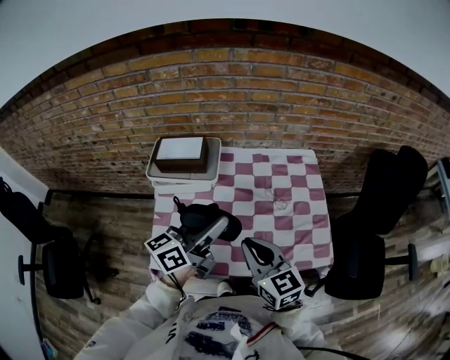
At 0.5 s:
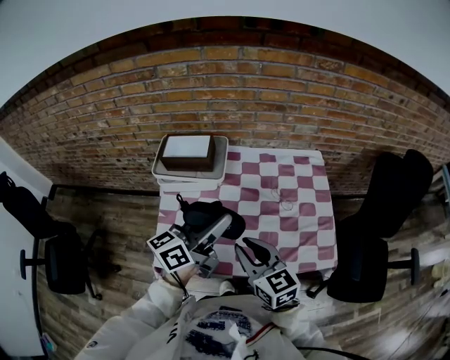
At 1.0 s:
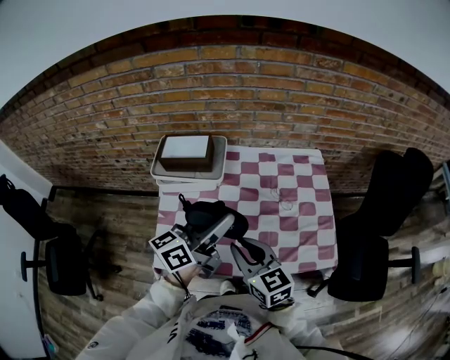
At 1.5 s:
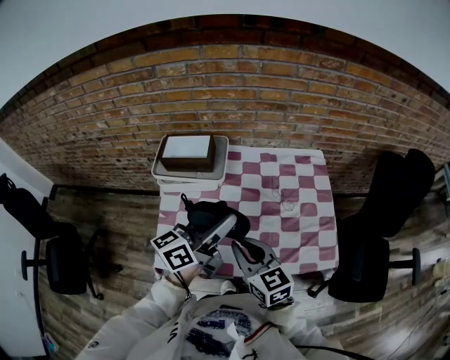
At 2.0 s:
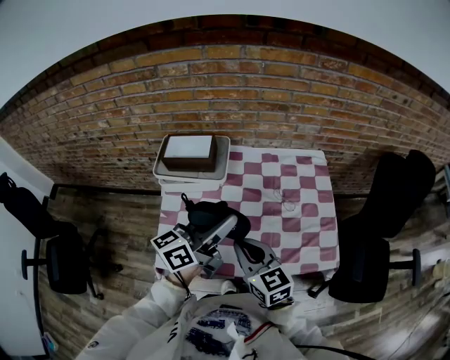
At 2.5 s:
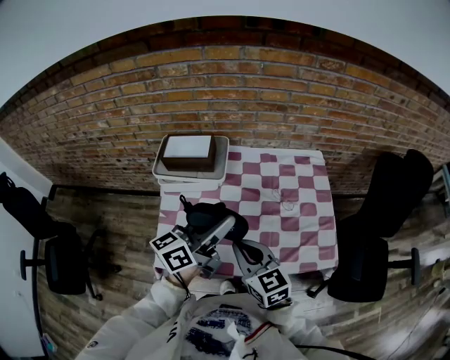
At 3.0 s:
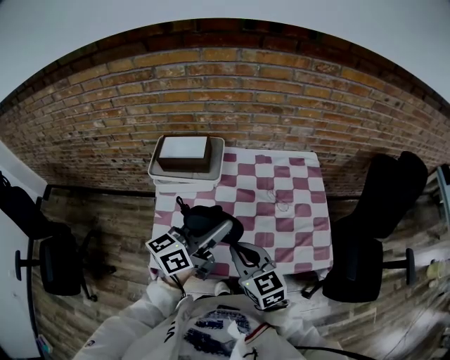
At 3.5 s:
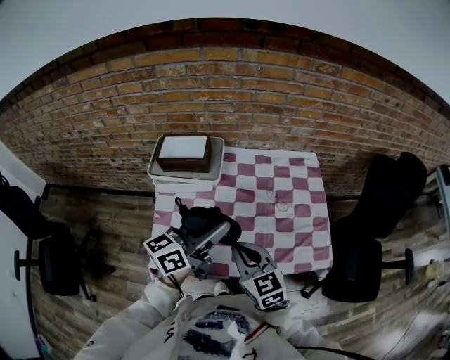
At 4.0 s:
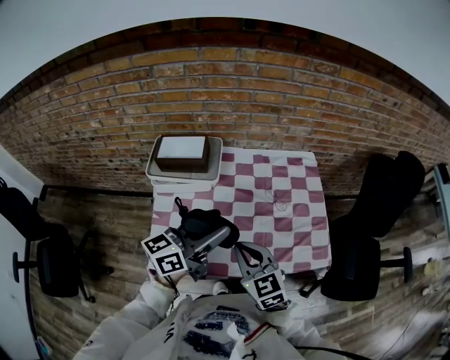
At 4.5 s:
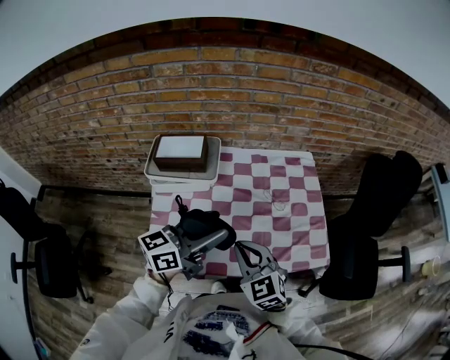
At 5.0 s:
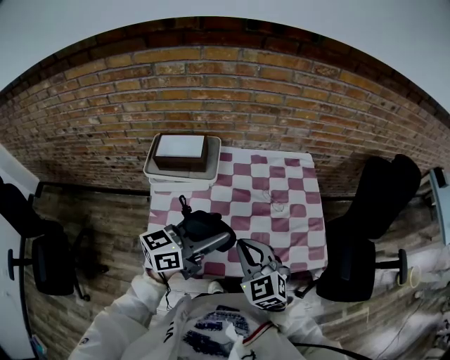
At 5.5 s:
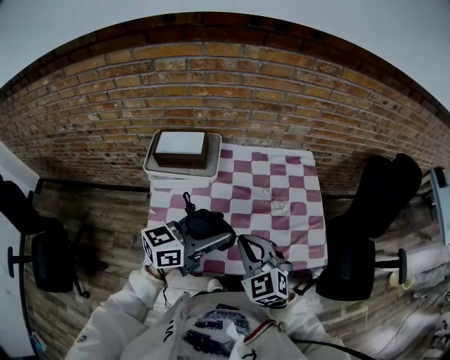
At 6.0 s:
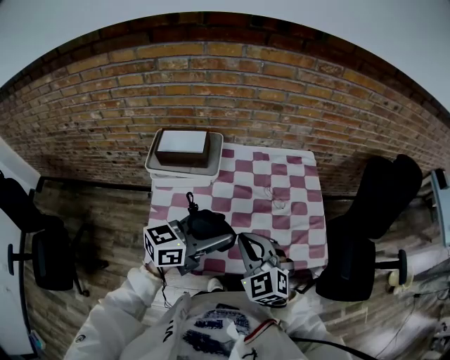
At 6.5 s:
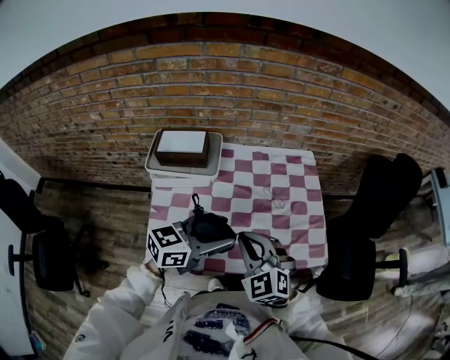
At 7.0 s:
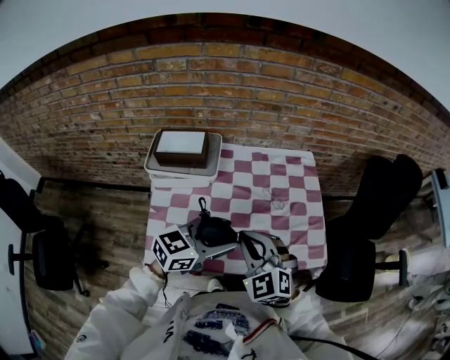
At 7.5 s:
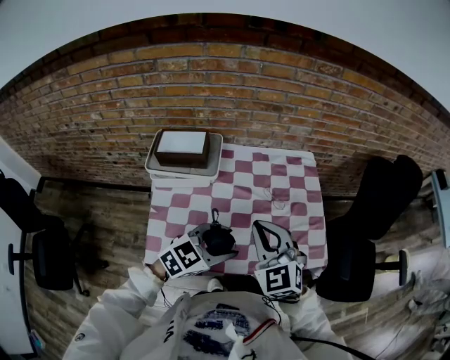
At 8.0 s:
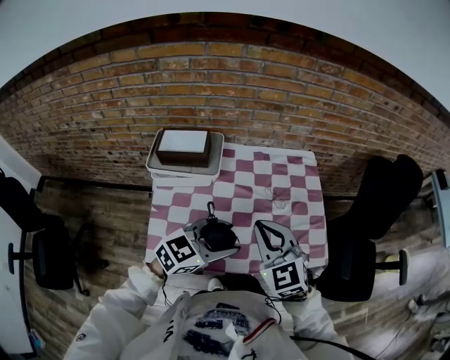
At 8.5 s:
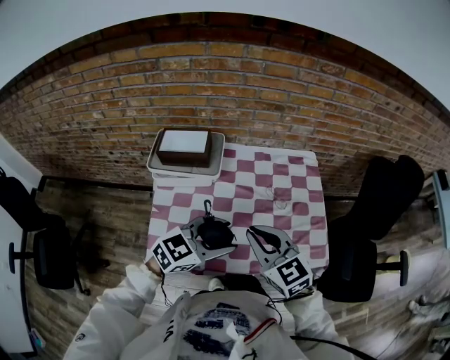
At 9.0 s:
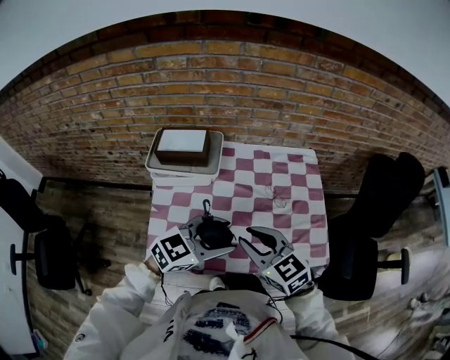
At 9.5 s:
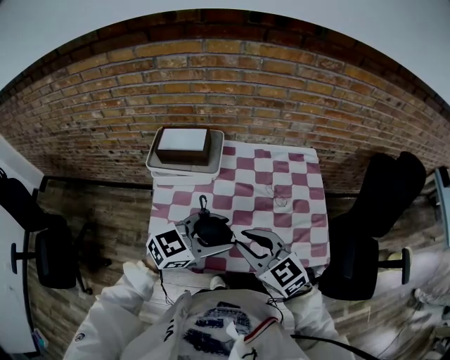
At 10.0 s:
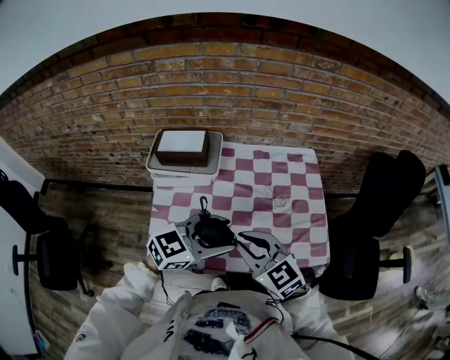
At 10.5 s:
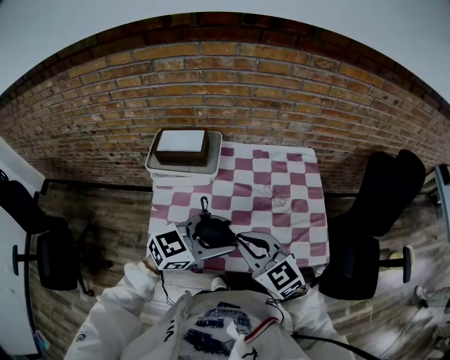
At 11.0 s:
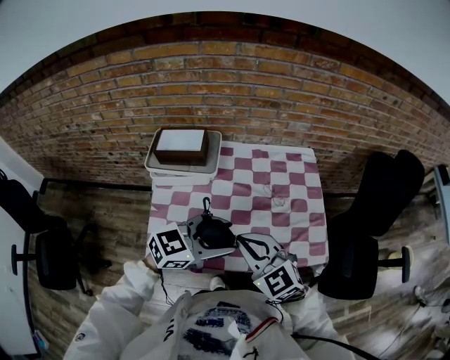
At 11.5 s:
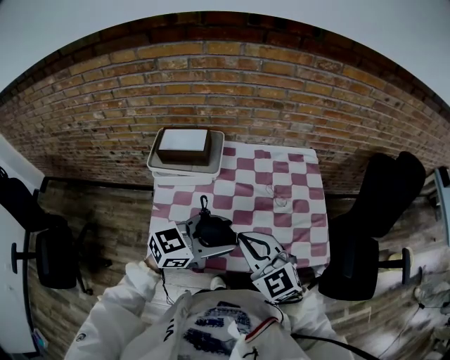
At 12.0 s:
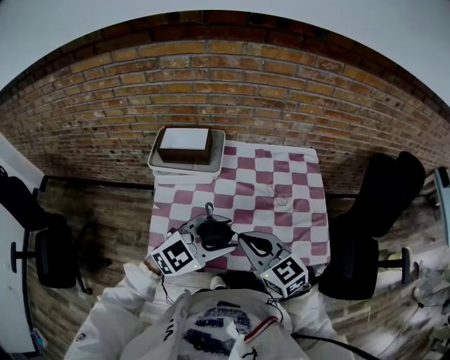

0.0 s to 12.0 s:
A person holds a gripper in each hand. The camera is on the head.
0.0 to 2.0 s: The right gripper moves some 5 cm.
2.0 to 4.0 s: The grippers move only a little.
4.0 to 6.0 s: The right gripper turns by about 30 degrees.
6.0 to 8.0 s: The left gripper ends up some 5 cm from where it was, and rotates roughly 30 degrees. Meanwhile the right gripper goes some 5 cm upward.
8.0 to 10.0 s: The right gripper shifts by about 5 cm, and turns by some 20 degrees.
10.0 to 12.0 s: The grippers move only a little.

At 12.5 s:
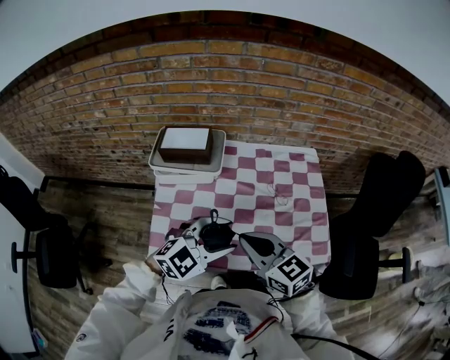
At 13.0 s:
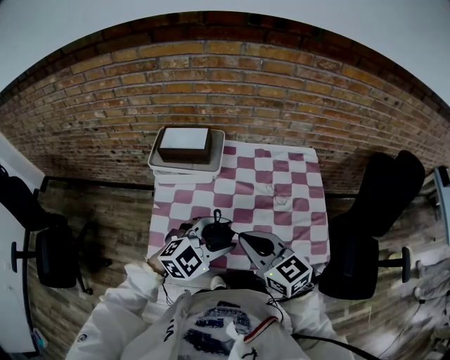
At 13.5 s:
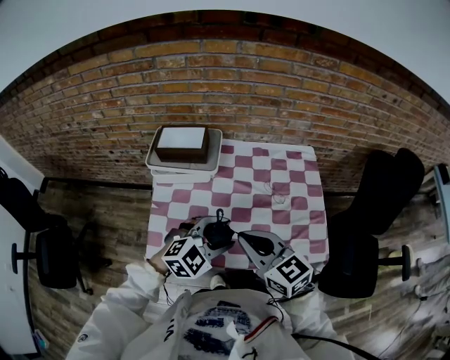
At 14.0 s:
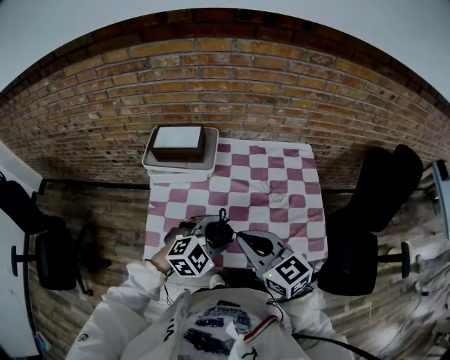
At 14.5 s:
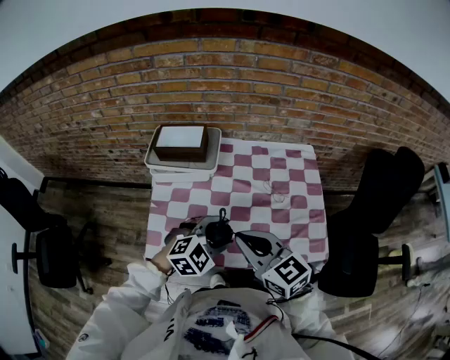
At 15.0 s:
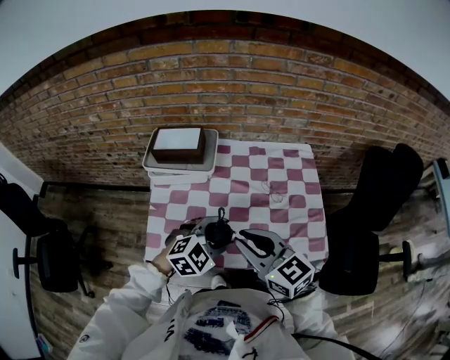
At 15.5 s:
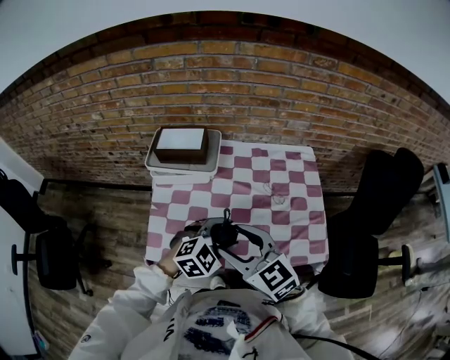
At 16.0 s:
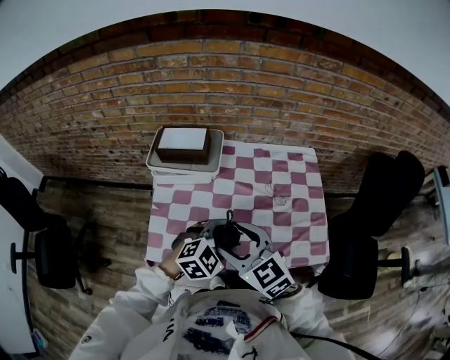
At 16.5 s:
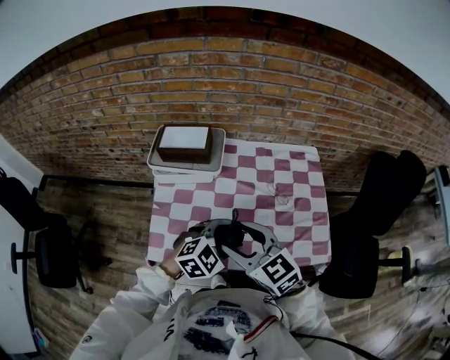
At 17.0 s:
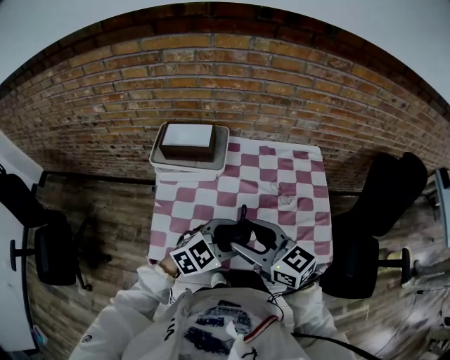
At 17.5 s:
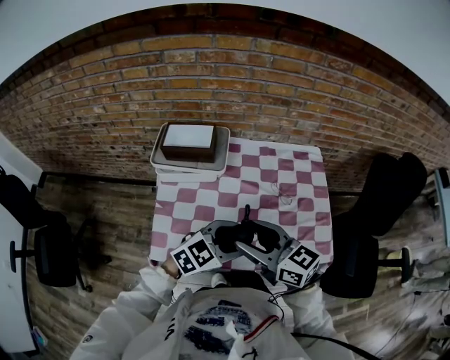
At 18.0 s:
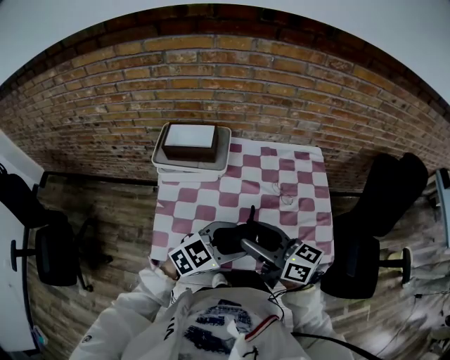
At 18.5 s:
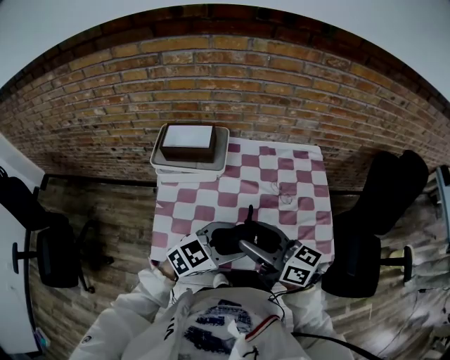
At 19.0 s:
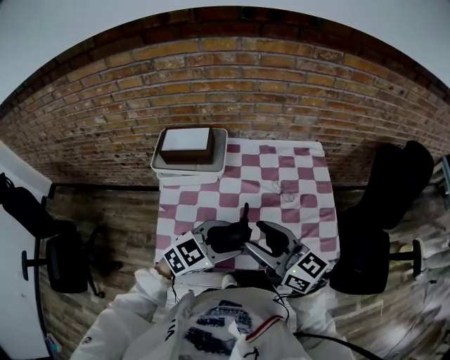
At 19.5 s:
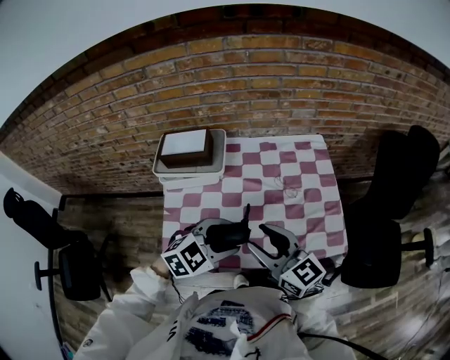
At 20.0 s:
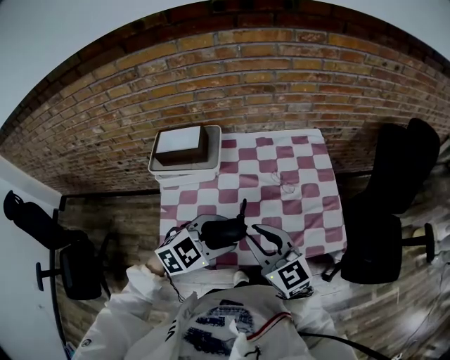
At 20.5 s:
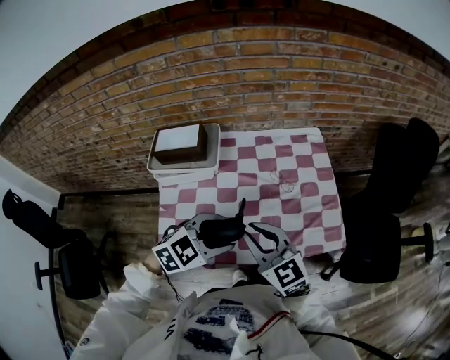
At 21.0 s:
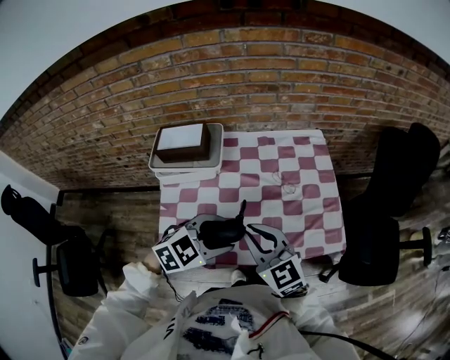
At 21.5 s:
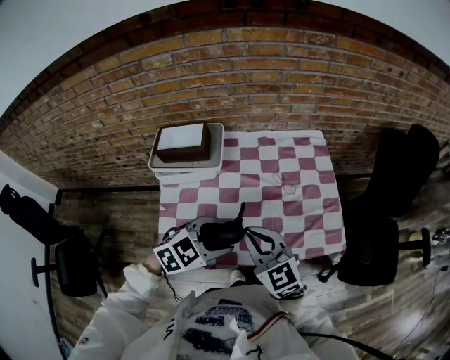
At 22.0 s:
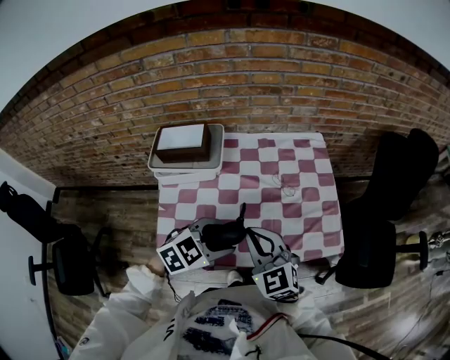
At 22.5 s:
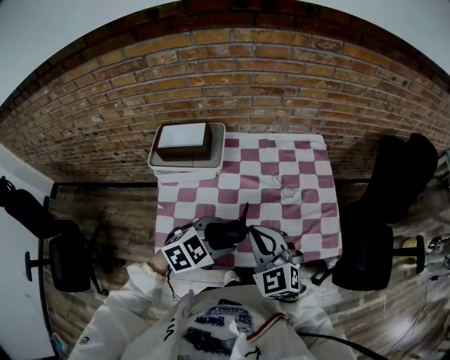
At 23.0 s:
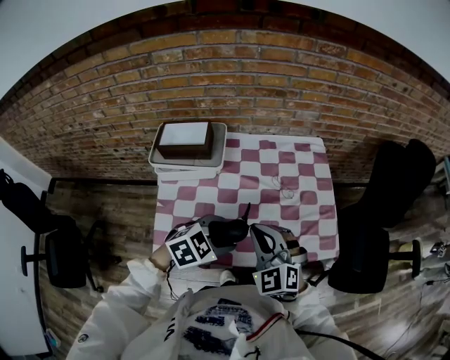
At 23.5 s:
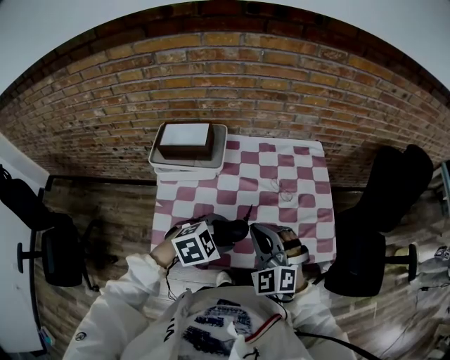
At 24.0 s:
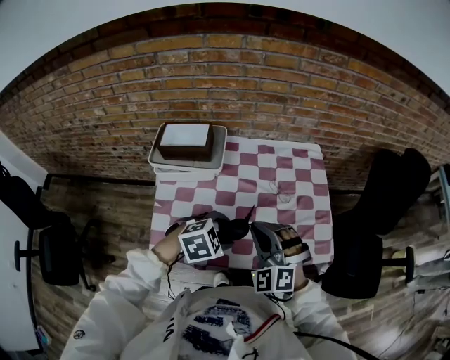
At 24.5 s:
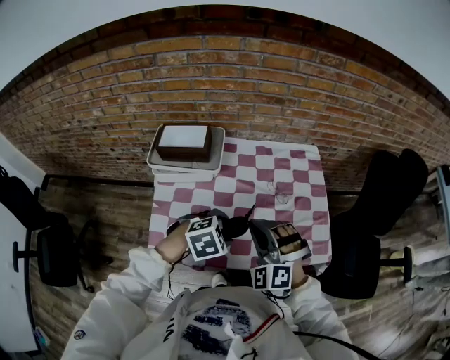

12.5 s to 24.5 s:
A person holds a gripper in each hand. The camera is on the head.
12.5 to 14.5 s: The left gripper moves downward, about 5 cm.
14.5 to 16.5 s: The right gripper opens up.
16.5 to 18.5 s: The left gripper swivels some 20 degrees; the right gripper changes its angle by about 40 degrees.
18.5 to 20.5 s: The left gripper swivels some 20 degrees; the right gripper turns by about 40 degrees, and closes.
20.5 to 22.5 s: The right gripper rotates approximately 20 degrees.
22.5 to 24.5 s: The right gripper rotates some 40 degrees.

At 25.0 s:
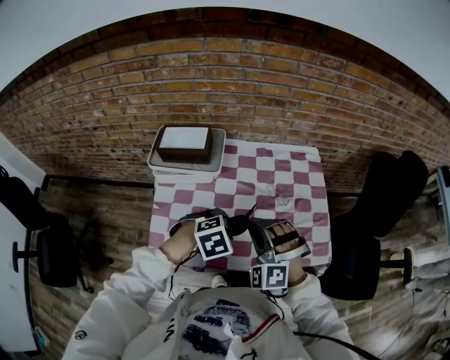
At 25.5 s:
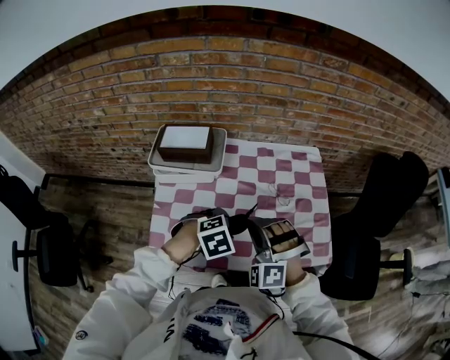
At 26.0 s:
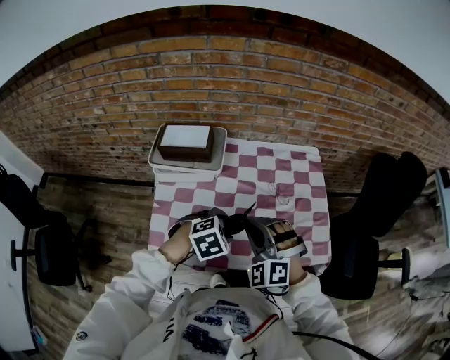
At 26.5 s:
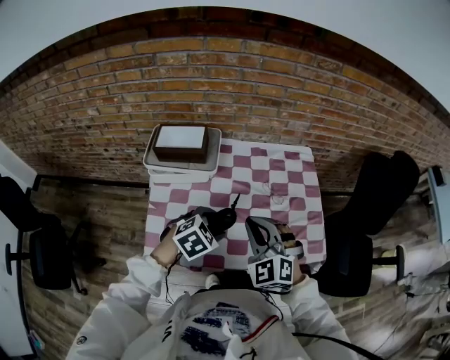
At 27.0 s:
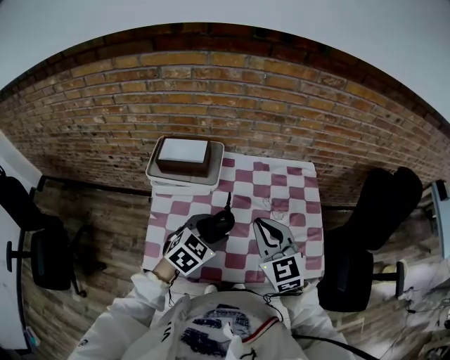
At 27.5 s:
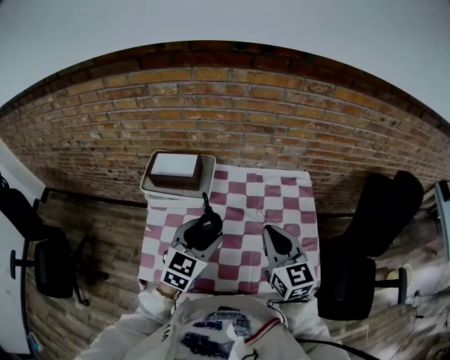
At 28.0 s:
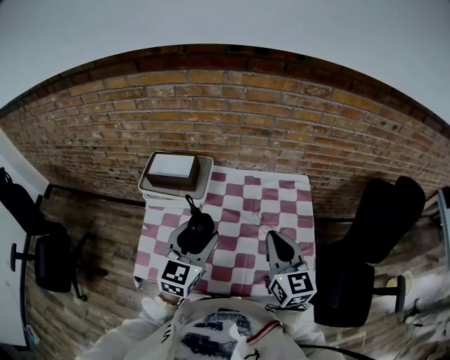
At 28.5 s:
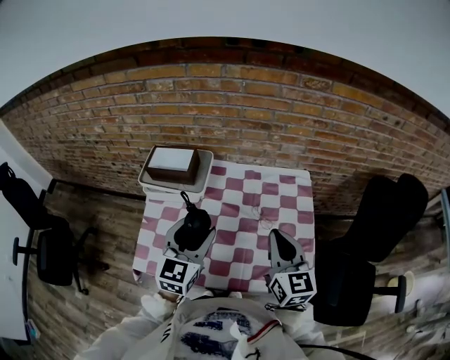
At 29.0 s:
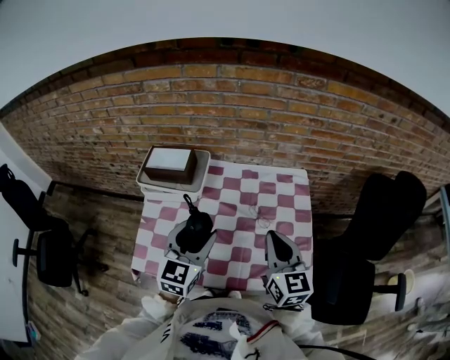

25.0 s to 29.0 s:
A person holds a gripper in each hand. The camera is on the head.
25.0 to 27.0 s: Both grippers travel together upward, approximately 5 cm. The right gripper rolls clockwise, seen from behind, by about 60 degrees. Meanwhile the left gripper rotates approximately 40 degrees.
27.0 to 29.0 s: The left gripper is displaced upward by about 10 cm, and changes its angle by some 40 degrees. Meanwhile the right gripper goes approximately 15 cm to the right, and turns by approximately 20 degrees.
